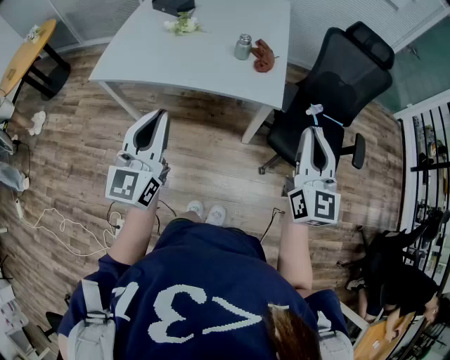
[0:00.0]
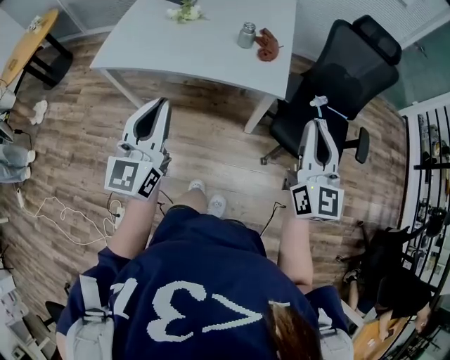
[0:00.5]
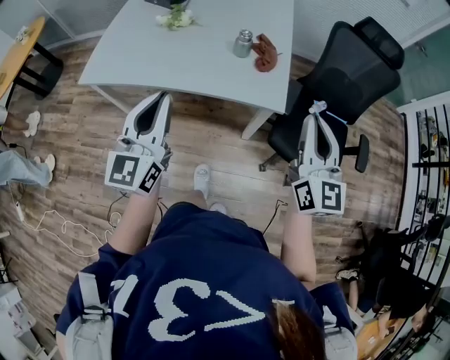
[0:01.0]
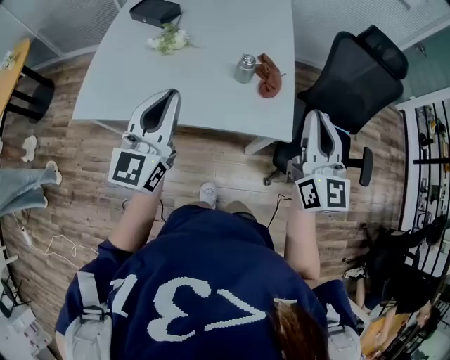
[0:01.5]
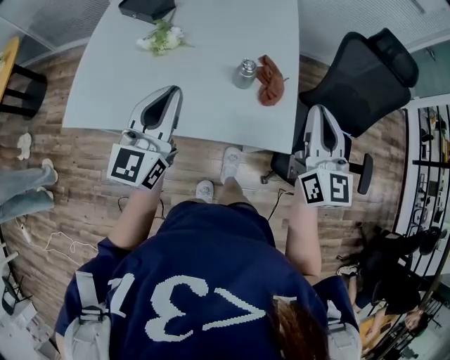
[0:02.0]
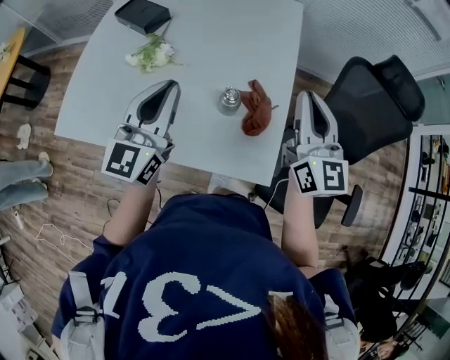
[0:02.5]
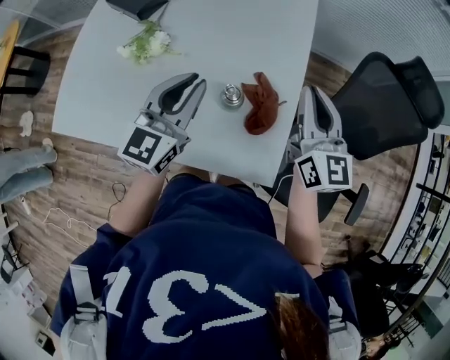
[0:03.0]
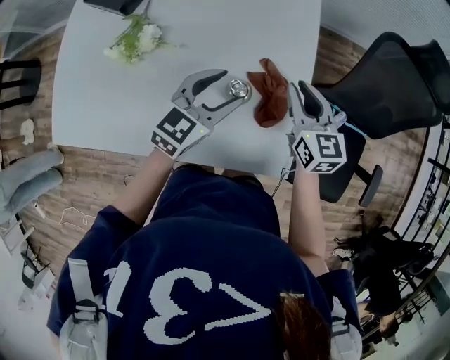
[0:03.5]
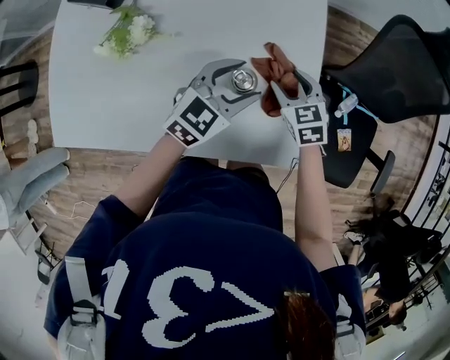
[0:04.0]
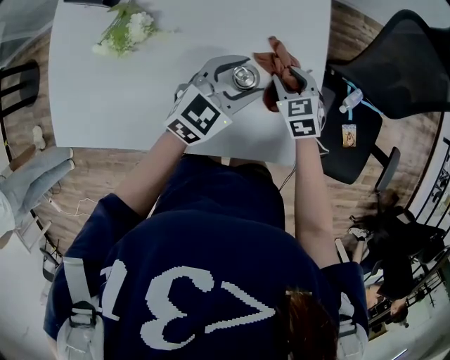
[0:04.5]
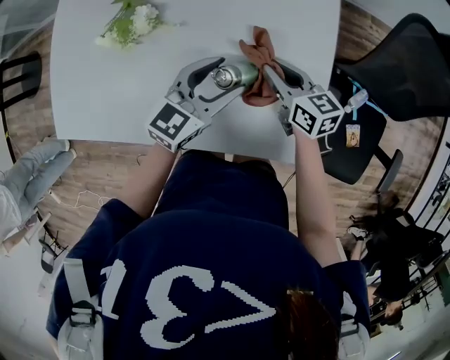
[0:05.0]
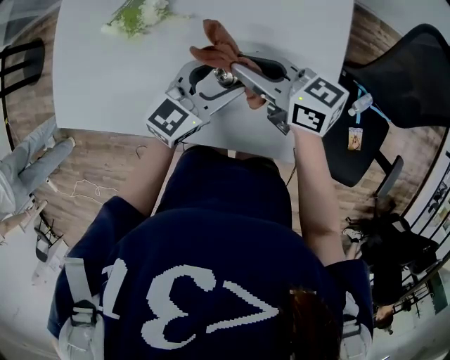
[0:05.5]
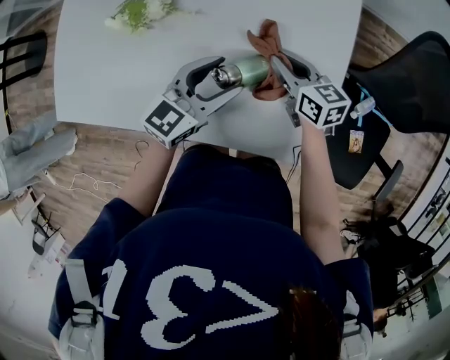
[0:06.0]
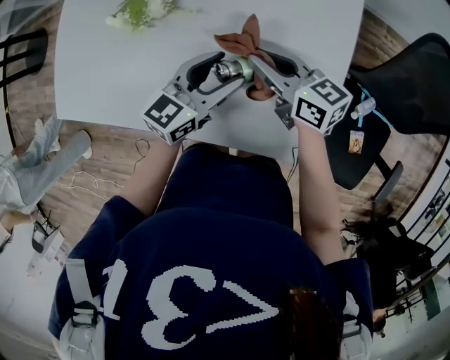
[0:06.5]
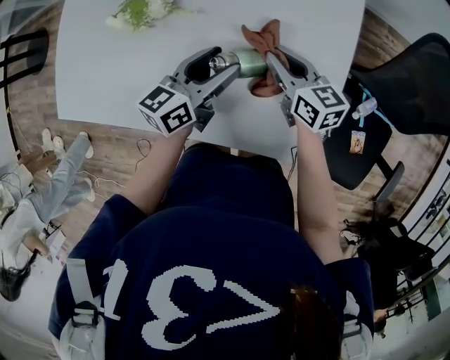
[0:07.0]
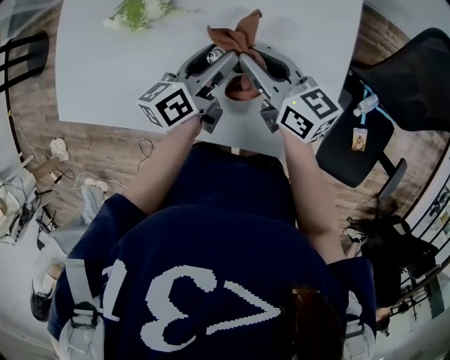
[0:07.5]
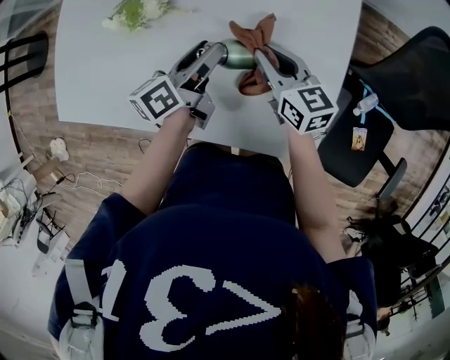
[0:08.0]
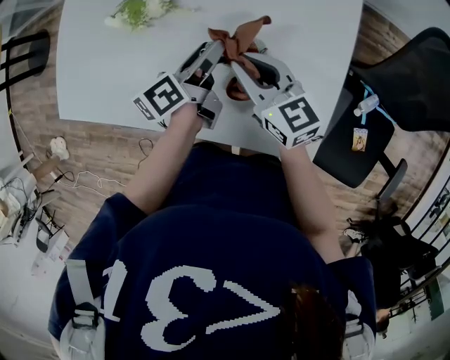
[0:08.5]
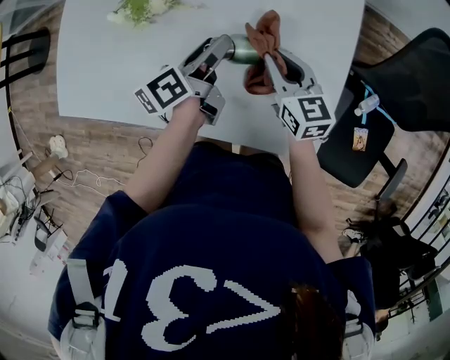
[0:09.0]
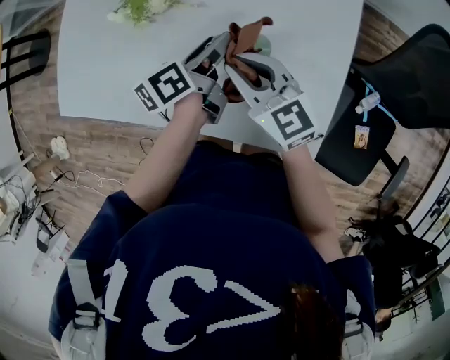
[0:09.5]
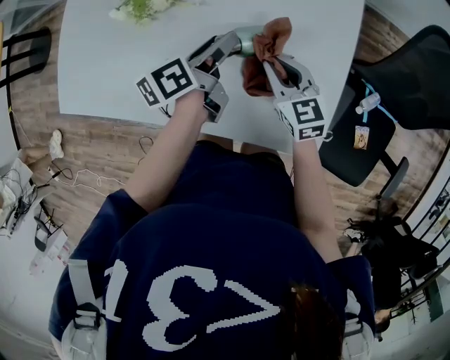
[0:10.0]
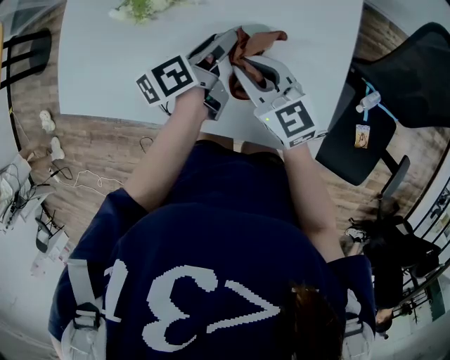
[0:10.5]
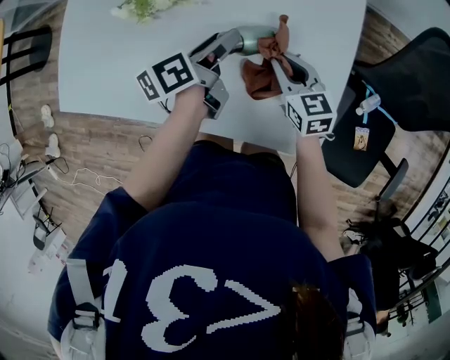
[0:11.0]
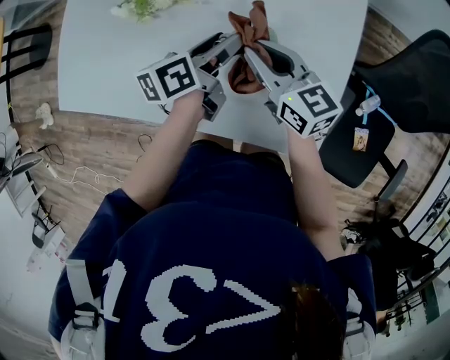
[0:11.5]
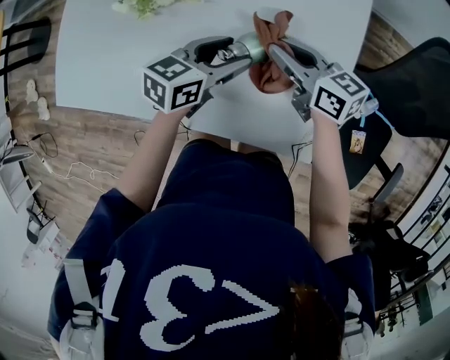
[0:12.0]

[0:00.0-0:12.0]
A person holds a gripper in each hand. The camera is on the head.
0:00.0 to 0:02.0: The two grippers go roughly 30 cm forward.
0:02.0 to 0:04.0: The left gripper travels downward, forward and to the right by roughly 35 cm, points its fingers some 30 degrees further downward, and opens its fingers. Meanwhile the right gripper goes roughly 35 cm downward and forward, tips its fingers downward by roughly 50 degrees, and opens its fingers.
0:04.0 to 0:06.0: The right gripper reaches some 10 cm upward, then returns, swivels approximately 30 degrees, and closes up. The left gripper changes place by some 10 cm, and turns by roughly 20 degrees.
0:06.0 to 0:08.0: The left gripper heads forward, covering some 5 cm, and rotates around the line of its fingers by some 50 degrees, counterclockwise from behind; the right gripper moves up and down over some 10 cm, changing direction 3 times.
0:08.0 to 0:10.0: The right gripper swings up and down, approximately 10 cm each way, with 3 reversals.
0:10.0 to 0:12.0: The right gripper goes up and down, some 10 cm each way, reversing 2 times, and turns by about 30 degrees, while the left gripper rotates around the line of its fingers by some 40 degrees, clockwise from behind.

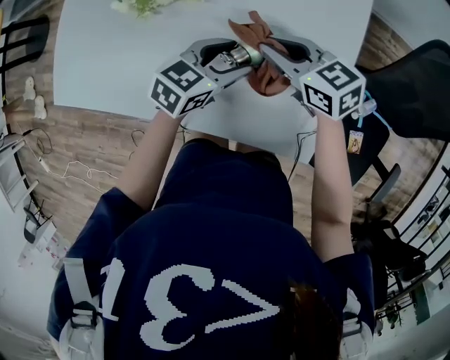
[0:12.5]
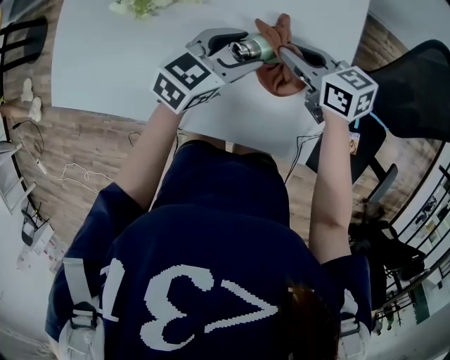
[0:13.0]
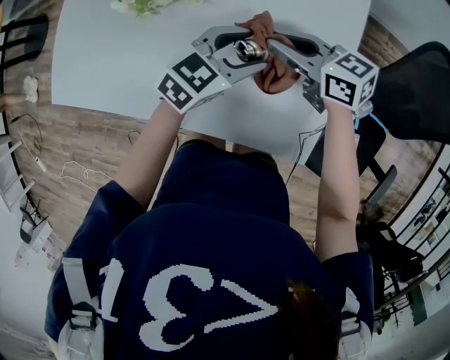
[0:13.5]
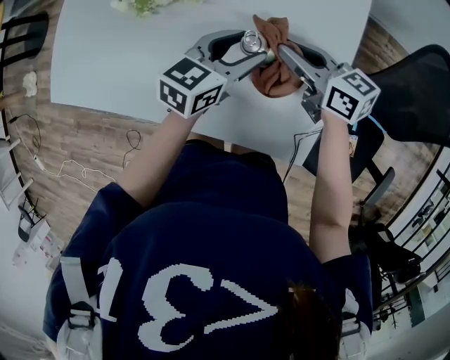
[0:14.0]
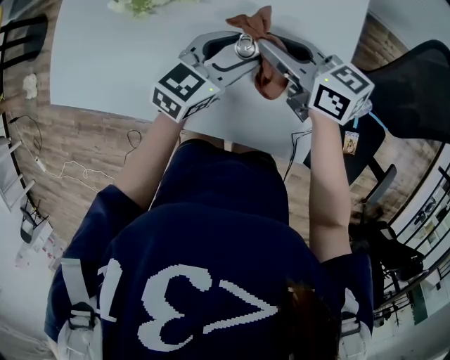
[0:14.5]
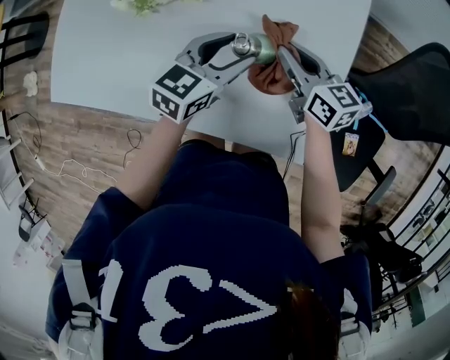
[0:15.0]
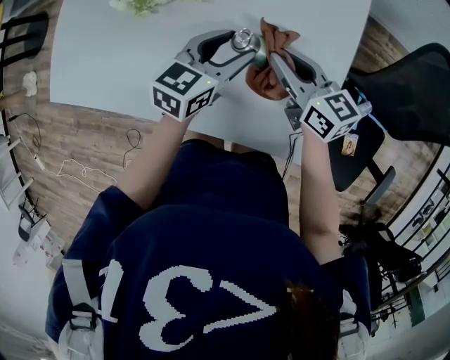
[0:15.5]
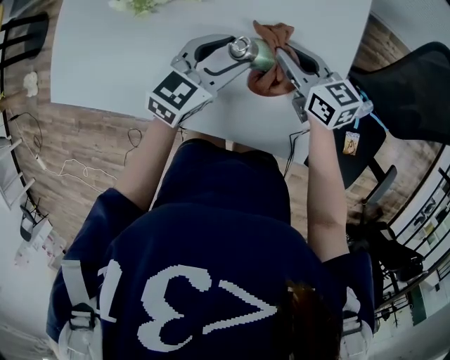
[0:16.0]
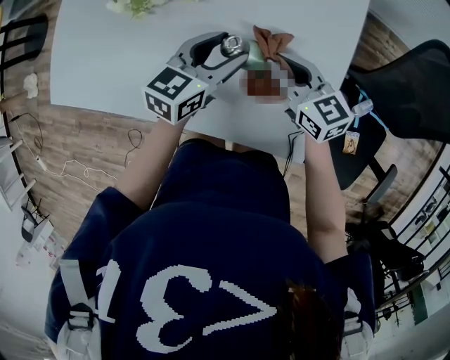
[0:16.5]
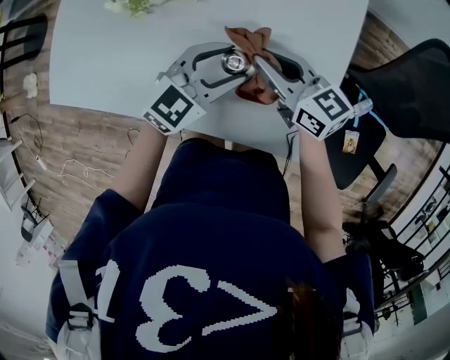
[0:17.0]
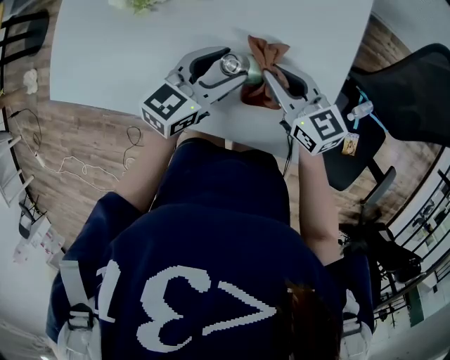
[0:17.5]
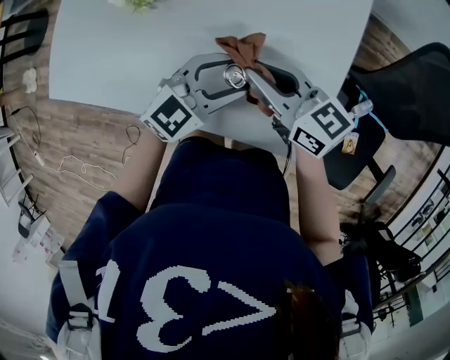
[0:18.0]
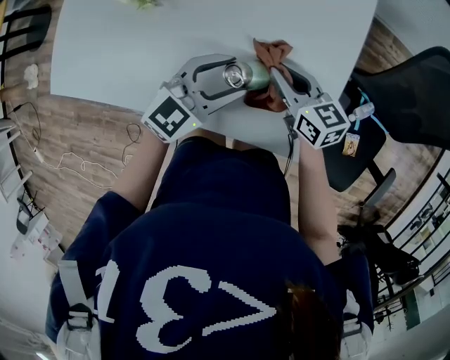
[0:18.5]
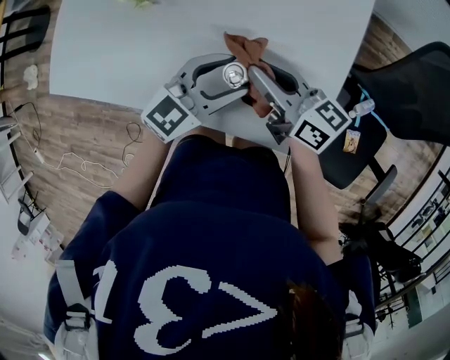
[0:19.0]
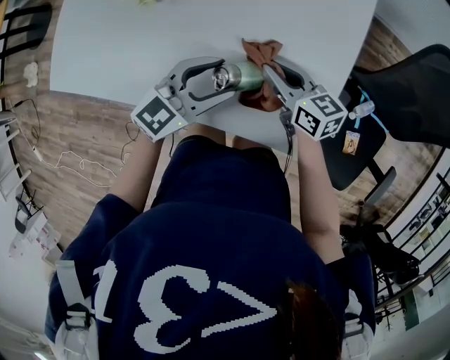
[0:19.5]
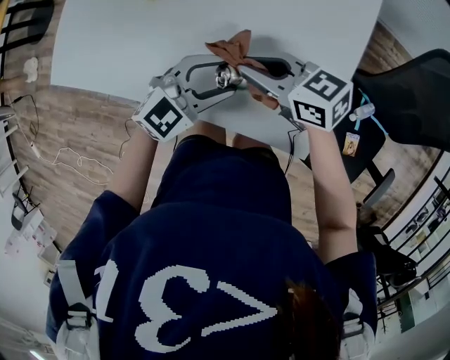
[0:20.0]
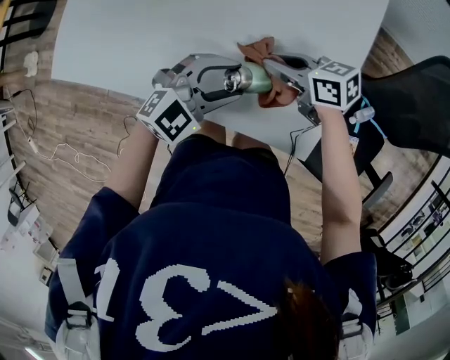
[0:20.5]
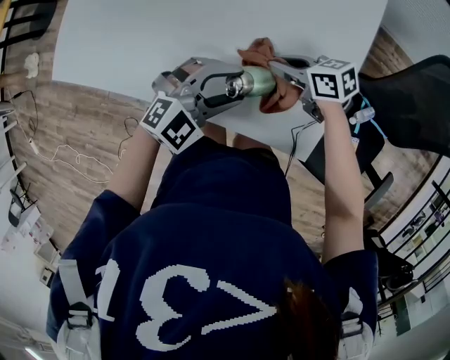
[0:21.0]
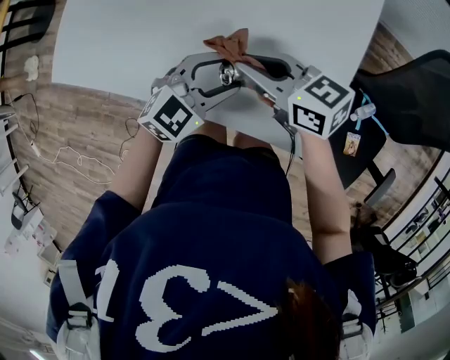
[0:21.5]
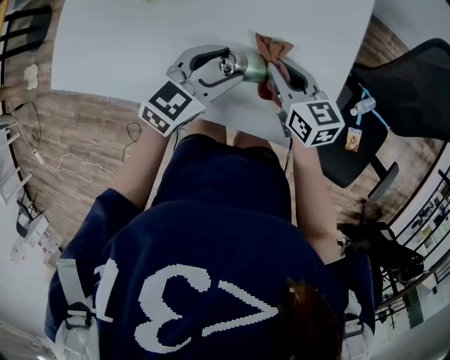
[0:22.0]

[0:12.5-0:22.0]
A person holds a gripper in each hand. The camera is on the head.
0:14.5 to 0:16.5: The right gripper travels downward by about 5 cm.
0:16.5 to 0:18.0: The right gripper heads upward and to the left, covering roughly 10 cm. The left gripper moves backward, approximately 5 cm, and turns by roughly 30 degrees.
0:18.0 to 0:20.0: The right gripper goes up and down, approximately 10 cm each way, reversing 3 times, and turns by about 20 degrees.
0:20.0 to 0:22.0: The right gripper moves up and down over about 10 cm, changing direction 2 times, and swivels about 30 degrees.

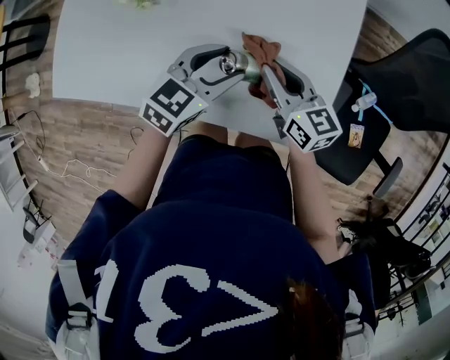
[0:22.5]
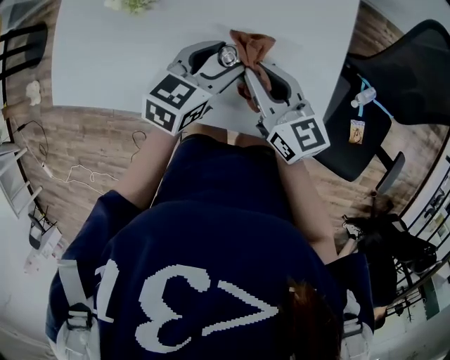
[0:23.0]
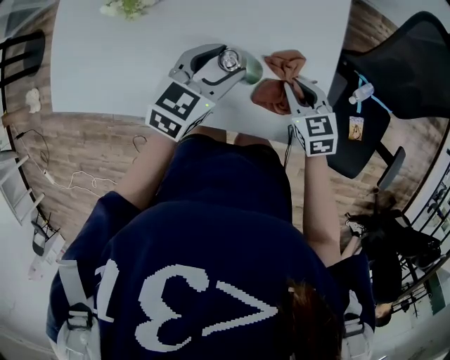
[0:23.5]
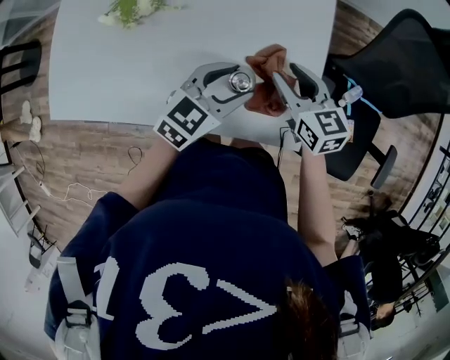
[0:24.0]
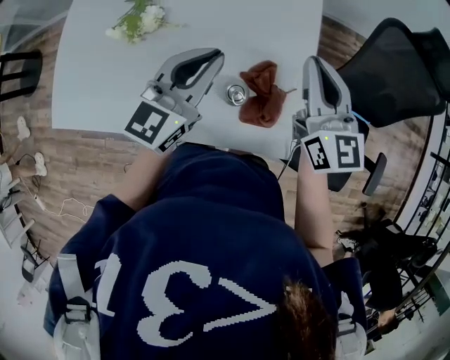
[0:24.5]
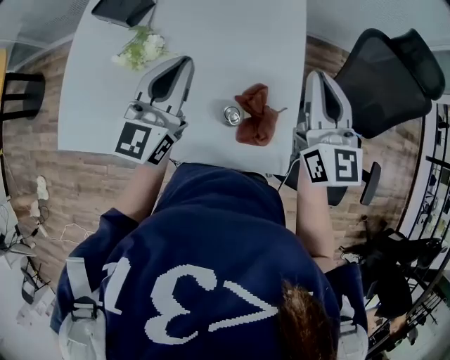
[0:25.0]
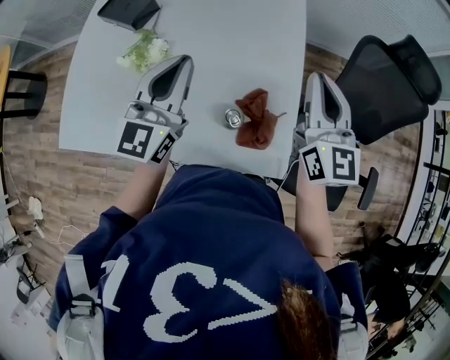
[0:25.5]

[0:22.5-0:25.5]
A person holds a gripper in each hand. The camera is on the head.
0:22.5 to 0:24.0: The two grippers go approximately 5 cm to the right. The right gripper opens.
0:24.0 to 0:25.5: The right gripper moves upward, roughly 25 cm, rotates about 40 degrees, and closes its fingers. The left gripper is displaced upward and to the left by approximately 25 cm, tilts its fingers roughly 30 degrees upward, and closes.

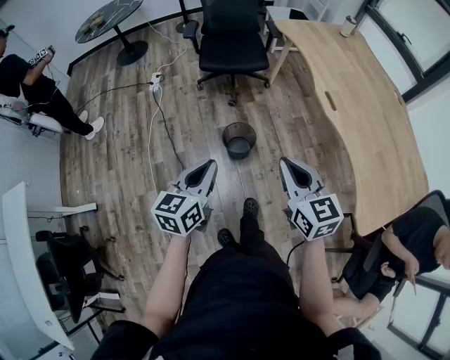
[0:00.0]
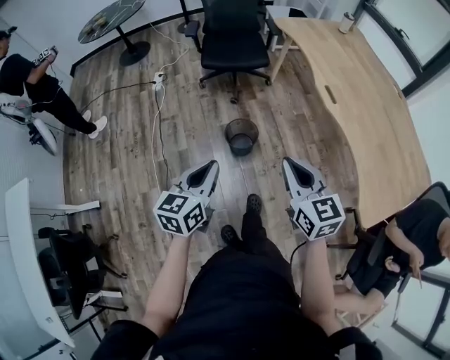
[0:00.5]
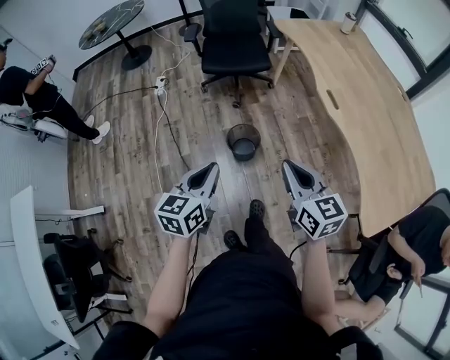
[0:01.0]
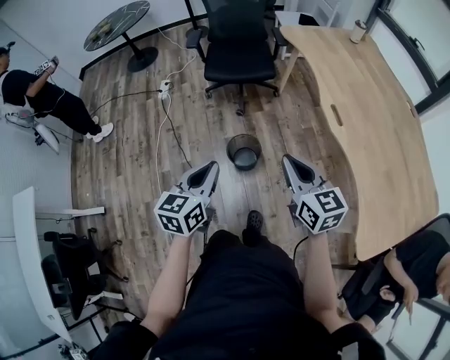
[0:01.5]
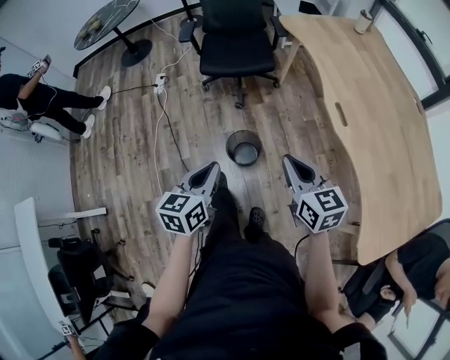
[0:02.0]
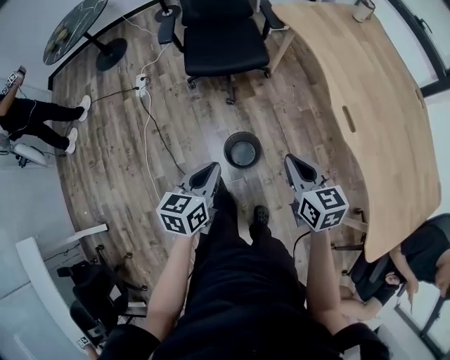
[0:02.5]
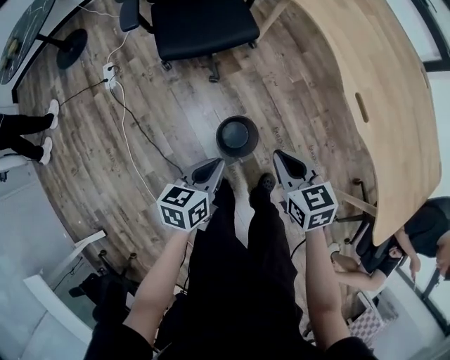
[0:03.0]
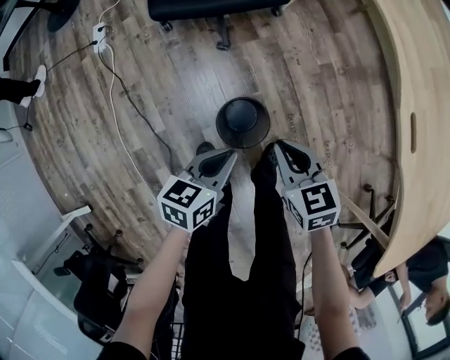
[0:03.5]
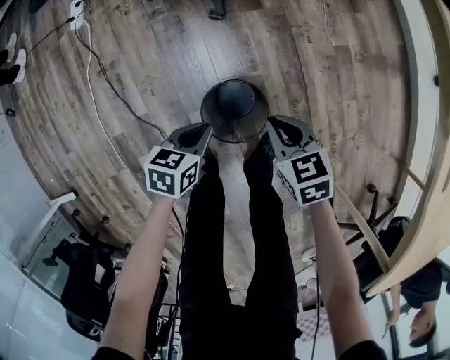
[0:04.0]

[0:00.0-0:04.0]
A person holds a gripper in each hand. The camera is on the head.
0:00.0 to 0:02.0: The right gripper heads forward and downward, covering some 15 cm; the left gripper travels forward by some 10 cm.
0:02.0 to 0:04.0: The right gripper heads downward and forward, covering approximately 50 cm, and tips its fingers downward by roughly 30 degrees. Meanwhile the left gripper shifts roughly 50 cm downward, and swivels some 40 degrees.
